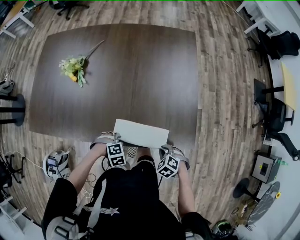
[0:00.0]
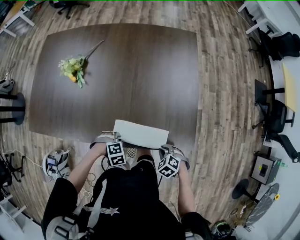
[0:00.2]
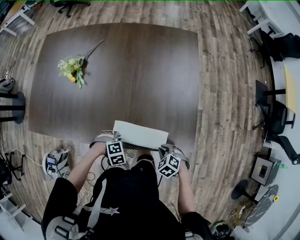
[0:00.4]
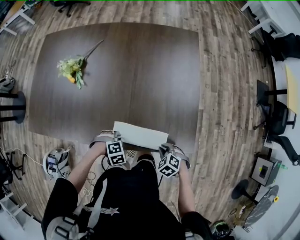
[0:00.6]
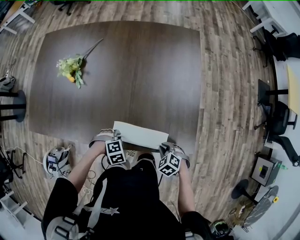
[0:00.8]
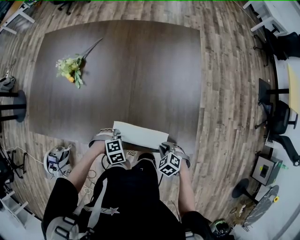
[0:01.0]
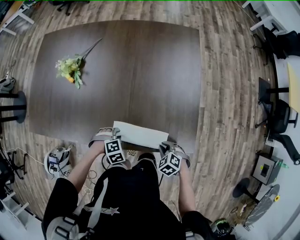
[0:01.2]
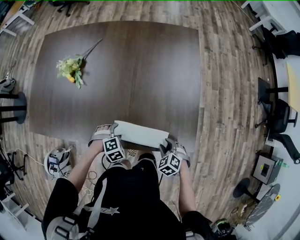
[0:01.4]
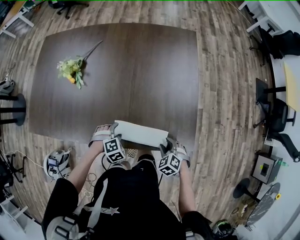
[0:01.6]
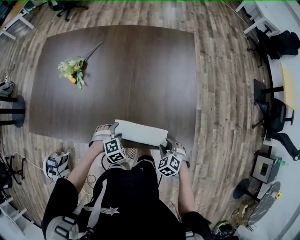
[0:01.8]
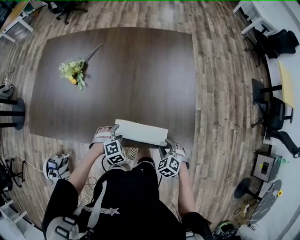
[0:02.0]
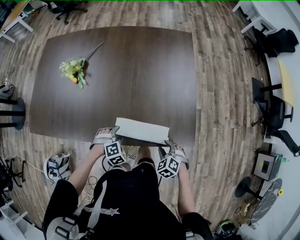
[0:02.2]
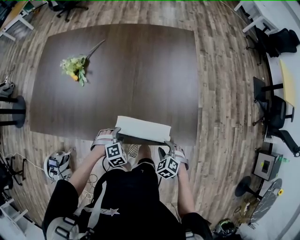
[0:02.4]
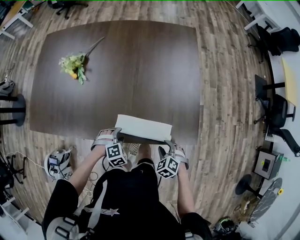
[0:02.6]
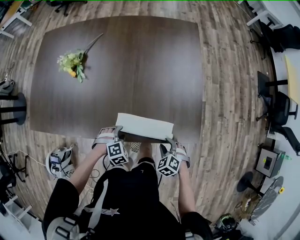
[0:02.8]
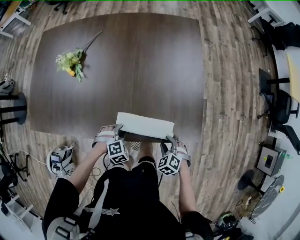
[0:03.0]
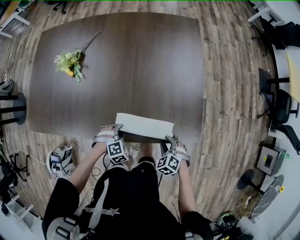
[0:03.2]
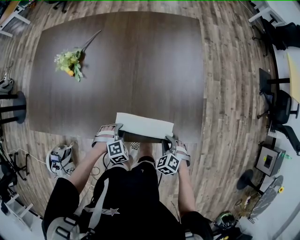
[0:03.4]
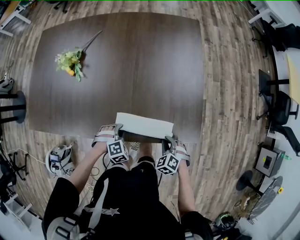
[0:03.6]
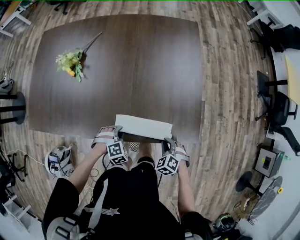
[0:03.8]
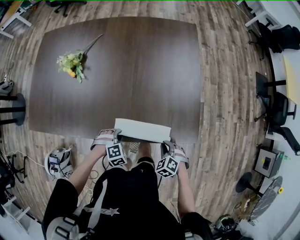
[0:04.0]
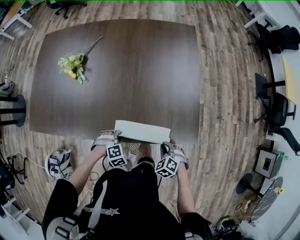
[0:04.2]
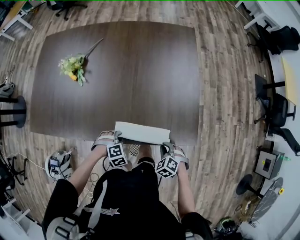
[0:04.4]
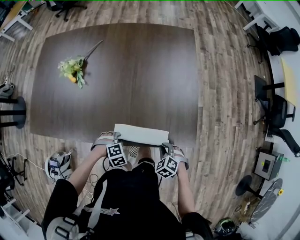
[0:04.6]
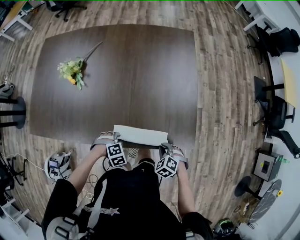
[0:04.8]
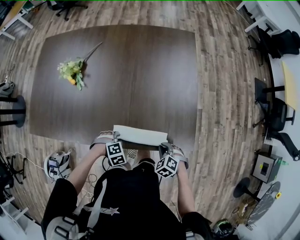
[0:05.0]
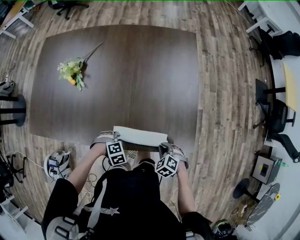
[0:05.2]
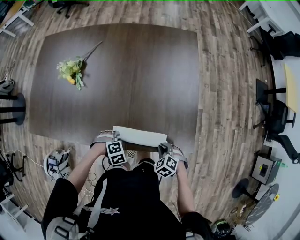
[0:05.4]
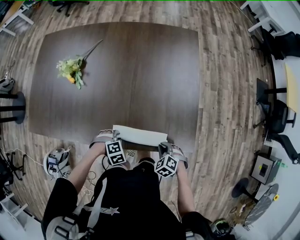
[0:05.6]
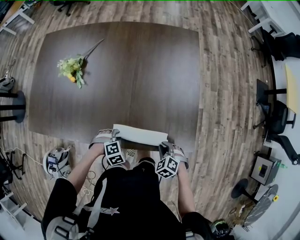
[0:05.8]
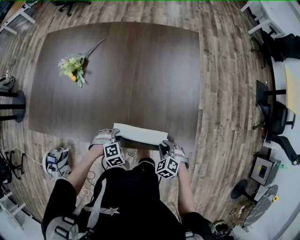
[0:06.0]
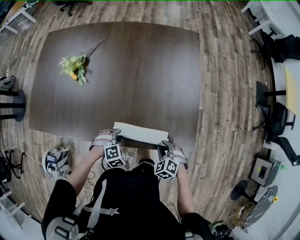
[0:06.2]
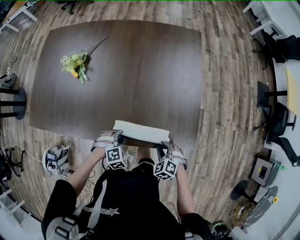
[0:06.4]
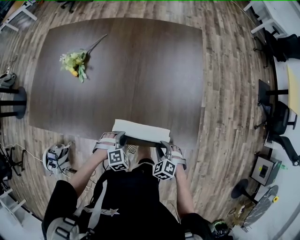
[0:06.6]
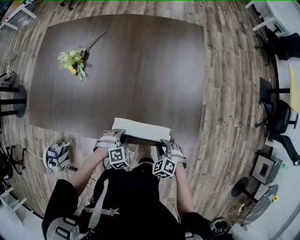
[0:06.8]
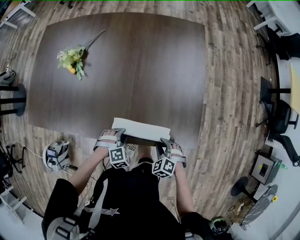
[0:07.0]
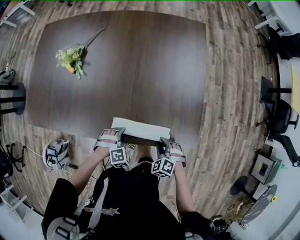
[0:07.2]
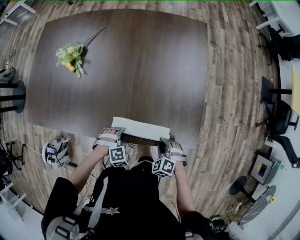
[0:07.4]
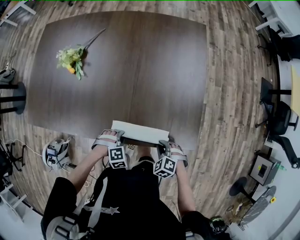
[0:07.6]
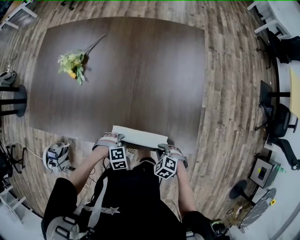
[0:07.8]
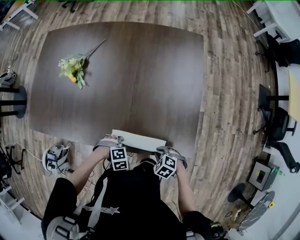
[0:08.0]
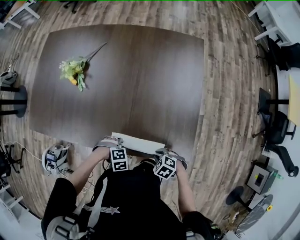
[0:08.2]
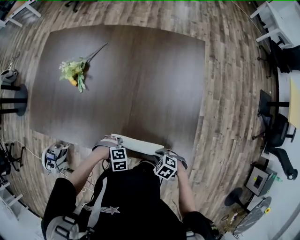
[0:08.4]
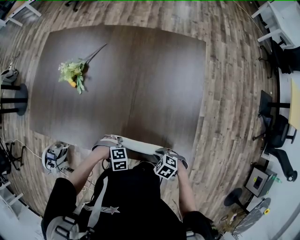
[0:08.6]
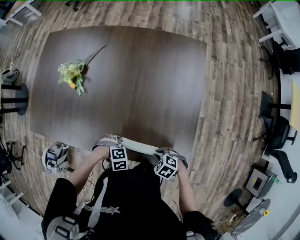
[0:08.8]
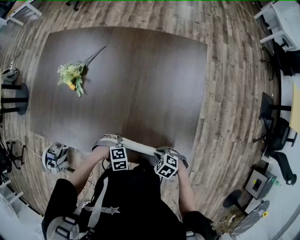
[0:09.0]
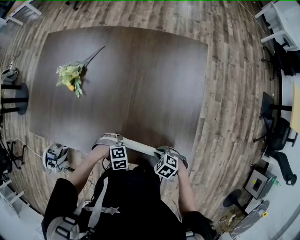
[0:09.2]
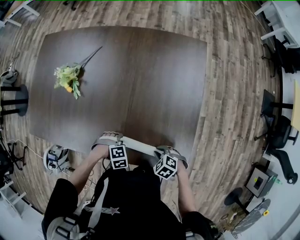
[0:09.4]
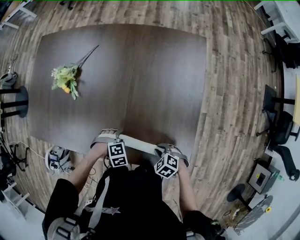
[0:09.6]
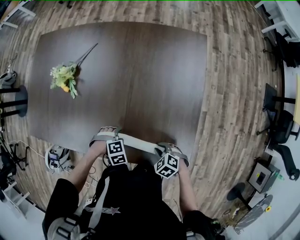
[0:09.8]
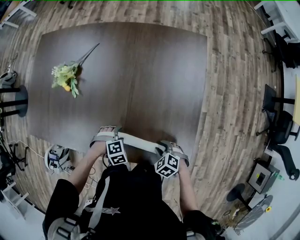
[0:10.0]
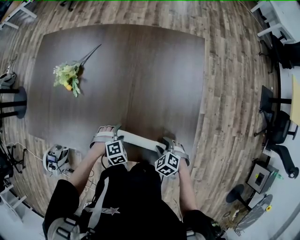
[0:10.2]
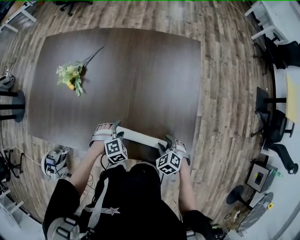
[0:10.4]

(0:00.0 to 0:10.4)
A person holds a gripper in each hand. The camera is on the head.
0:00.0 - 0:01.4: The right gripper ends up approximately 5 cm from where it was, and opens up.
0:03.0 - 0:04.4: The right gripper closes up.
0:07.4 - 0:09.0: The right gripper shifts by about 5 cm, and changes its angle by roughly 30 degrees.
0:09.0 - 0:10.4: The right gripper shifts by about 5 cm, turns by about 30 degrees, and opens up.

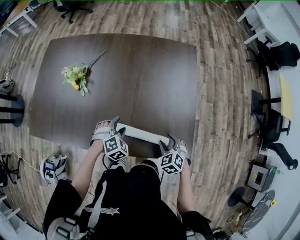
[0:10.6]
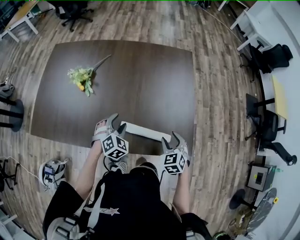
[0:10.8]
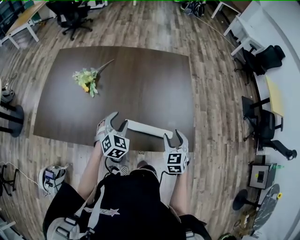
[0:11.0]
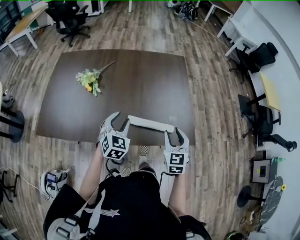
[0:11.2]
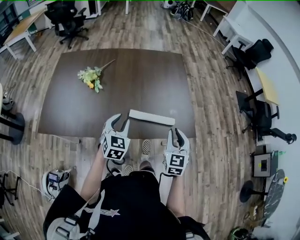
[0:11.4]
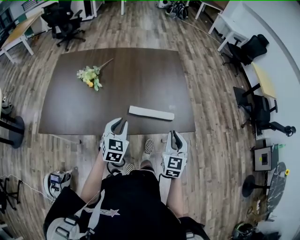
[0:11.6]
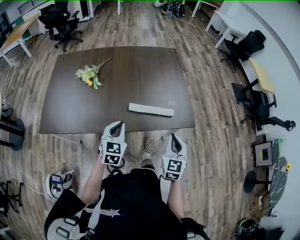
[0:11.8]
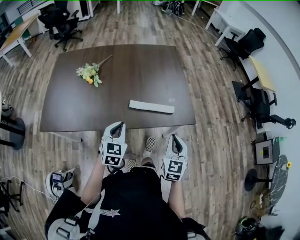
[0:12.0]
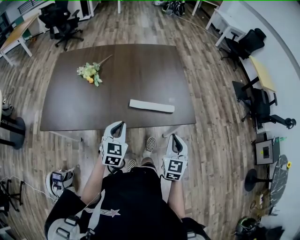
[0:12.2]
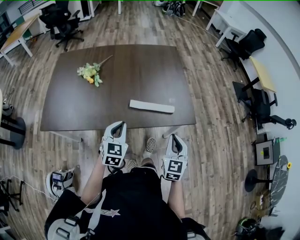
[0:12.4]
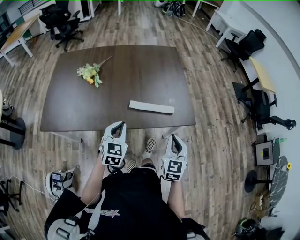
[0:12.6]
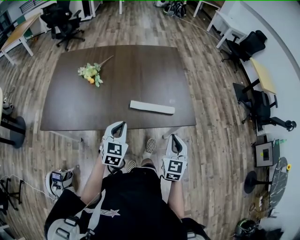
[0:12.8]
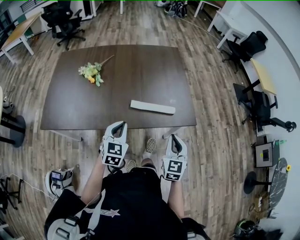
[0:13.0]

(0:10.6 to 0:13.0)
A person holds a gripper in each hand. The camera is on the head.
0:10.6 - 0:11.8: The right gripper moves approximately 30 cm, points its fingers roughly 40 degrees further upward, and closes up.

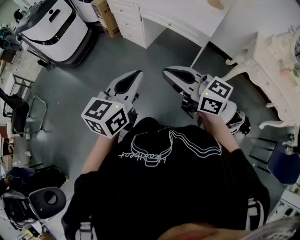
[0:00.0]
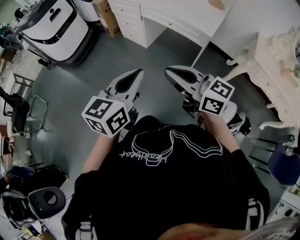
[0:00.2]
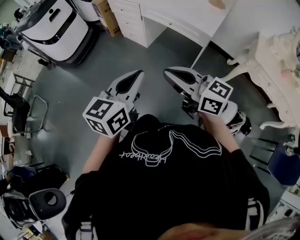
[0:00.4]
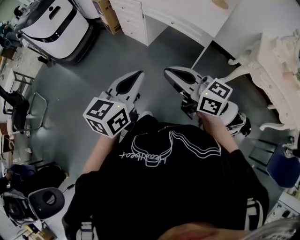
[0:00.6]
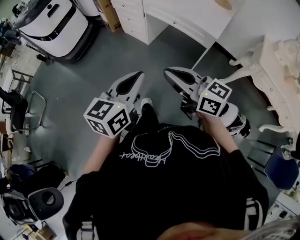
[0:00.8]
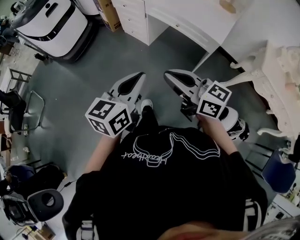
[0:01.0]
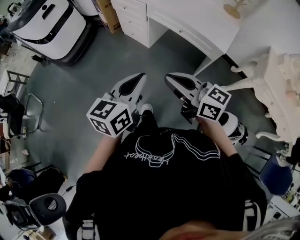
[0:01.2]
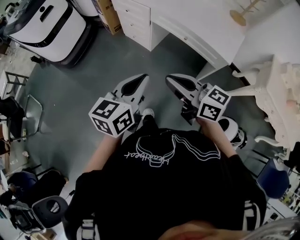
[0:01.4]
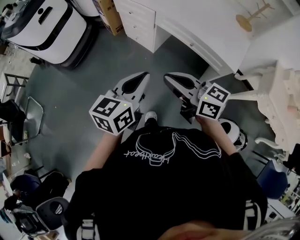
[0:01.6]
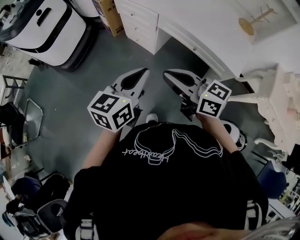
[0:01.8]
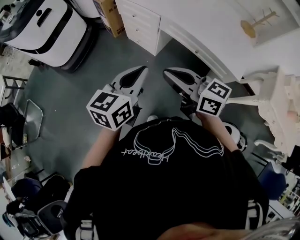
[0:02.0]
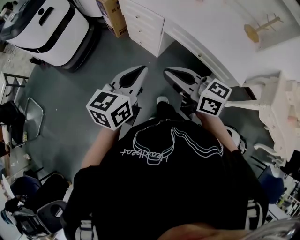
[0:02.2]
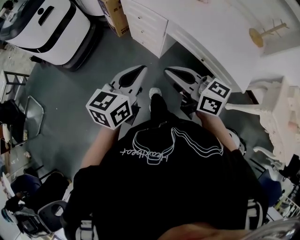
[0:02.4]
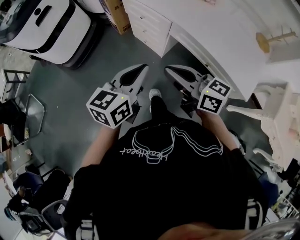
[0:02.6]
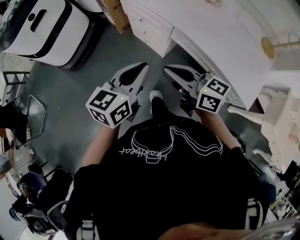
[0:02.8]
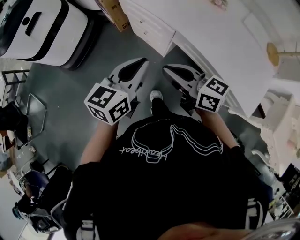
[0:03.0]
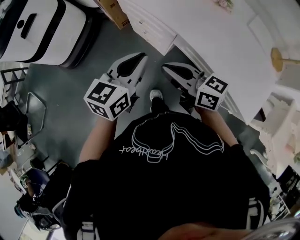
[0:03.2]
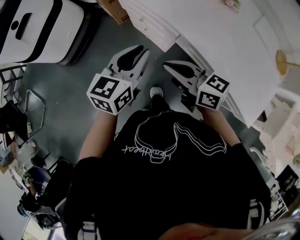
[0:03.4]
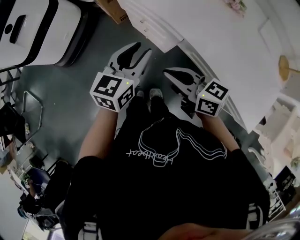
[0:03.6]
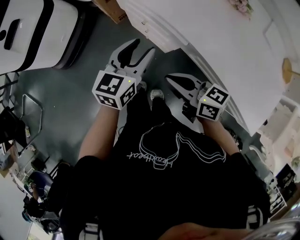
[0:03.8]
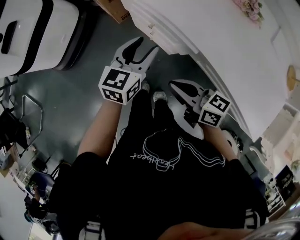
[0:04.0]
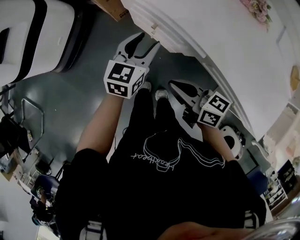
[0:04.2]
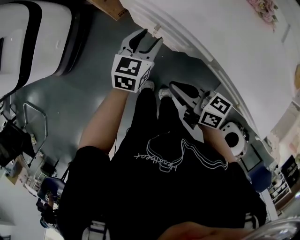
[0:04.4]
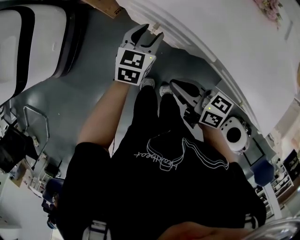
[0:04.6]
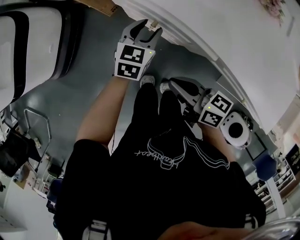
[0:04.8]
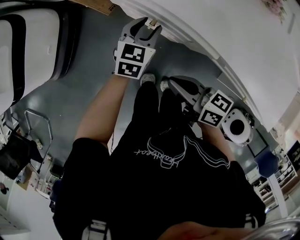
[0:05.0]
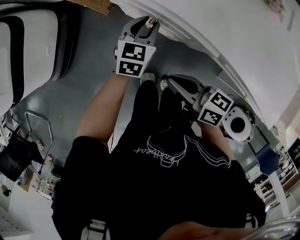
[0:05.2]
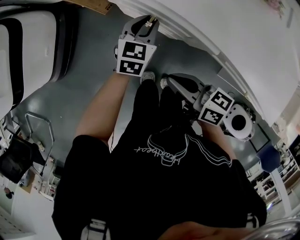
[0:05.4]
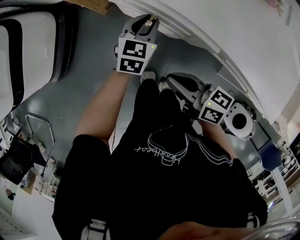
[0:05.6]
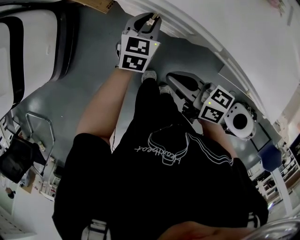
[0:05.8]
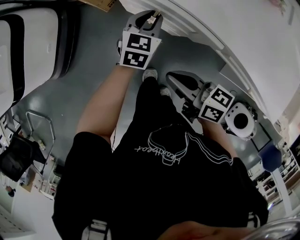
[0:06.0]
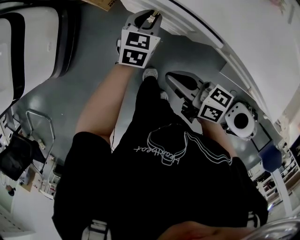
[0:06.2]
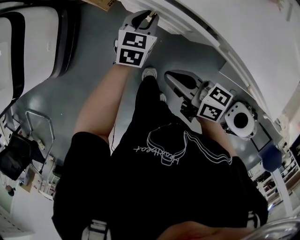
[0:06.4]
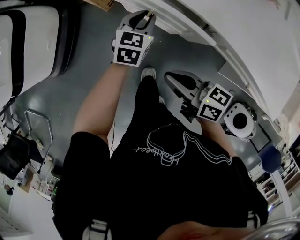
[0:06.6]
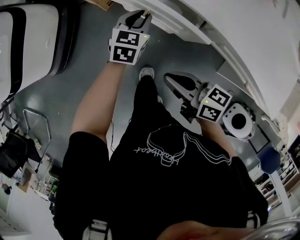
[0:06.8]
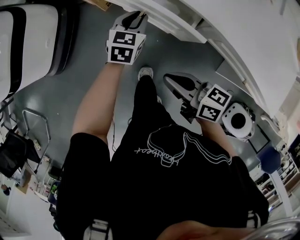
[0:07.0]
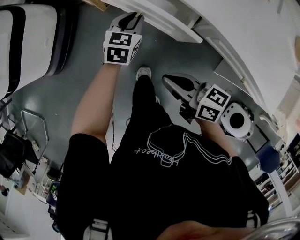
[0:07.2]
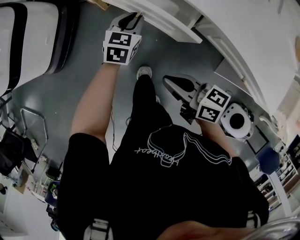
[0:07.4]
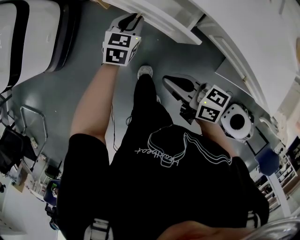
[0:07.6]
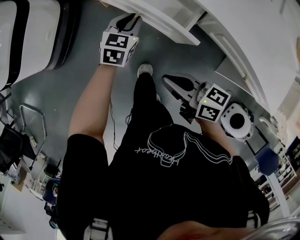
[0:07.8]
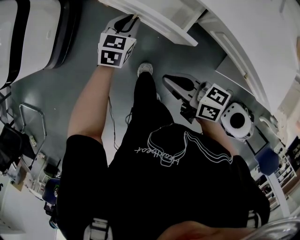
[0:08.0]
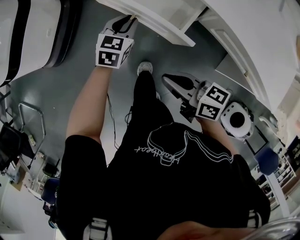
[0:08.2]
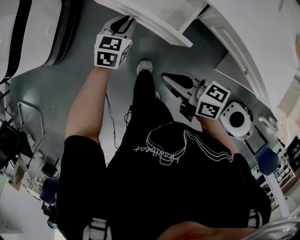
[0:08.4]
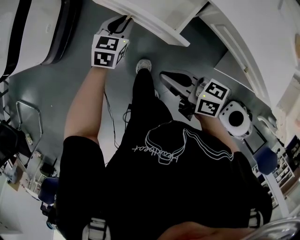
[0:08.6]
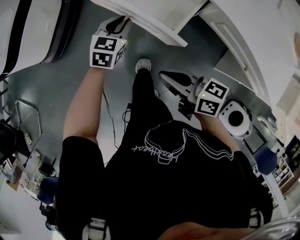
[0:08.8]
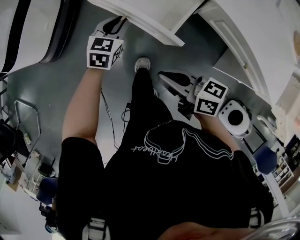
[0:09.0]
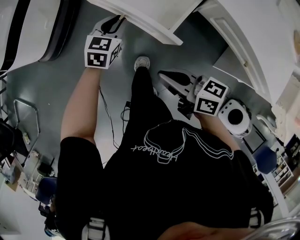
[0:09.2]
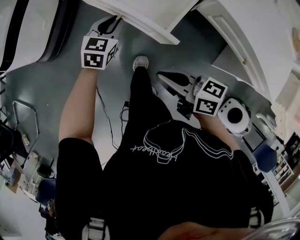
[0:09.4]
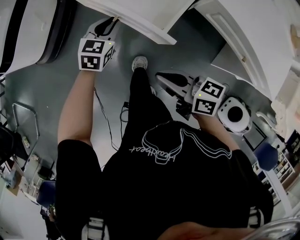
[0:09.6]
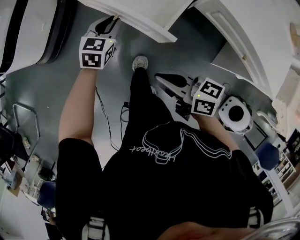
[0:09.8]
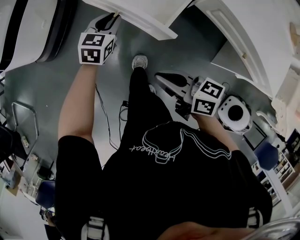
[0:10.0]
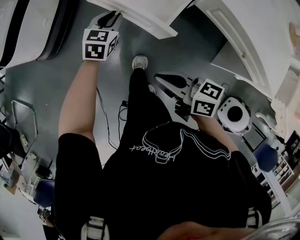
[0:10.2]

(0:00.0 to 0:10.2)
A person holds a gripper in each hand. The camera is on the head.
0:00.0 - 0:01.4: Both grippers move forward, roughly 25 cm.
0:01.4 - 0:03.0: Both grippers travel together forward, about 35 cm.
0:03.0 - 0:04.4: The left gripper goes about 35 cm forward and downward, and opens up. Meanwhile the right gripper heads downward and forward, covering about 20 cm.
0:04.4 - 0:05.8: The left gripper is displaced downward by some 5 cm, and closes its fingers.
0:05.8 - 0:07.2: The right gripper is displaced backward by approximately 5 cm. Meanwhile the left gripper shifts by approximately 5 cm.
0:07.2 - 0:08.8: The right gripper heads backward, covering approximately 5 cm; the left gripper heads to the left and backward, covering approximately 10 cm.
0:08.8 - 0:10.2: The right gripper is displaced backward by about 5 cm.

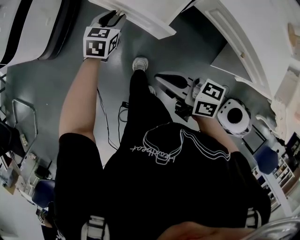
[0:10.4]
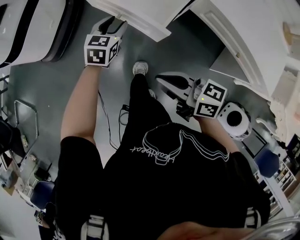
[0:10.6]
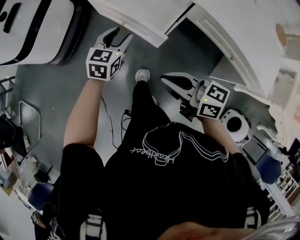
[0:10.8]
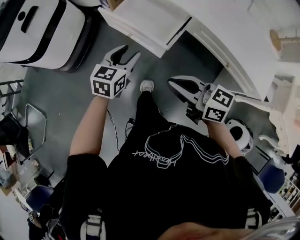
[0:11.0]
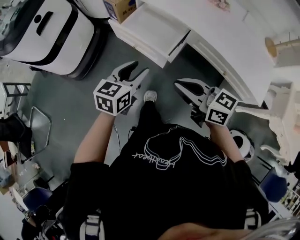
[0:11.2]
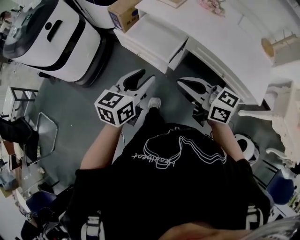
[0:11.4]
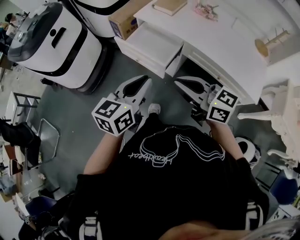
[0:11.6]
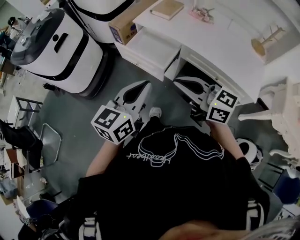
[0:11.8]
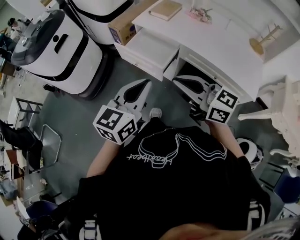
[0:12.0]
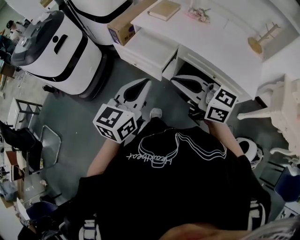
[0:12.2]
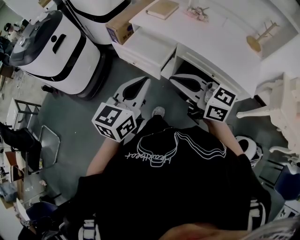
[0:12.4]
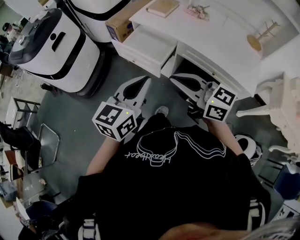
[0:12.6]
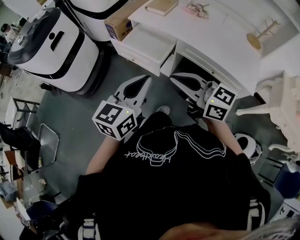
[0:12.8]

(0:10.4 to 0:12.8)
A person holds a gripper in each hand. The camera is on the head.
0:10.4 - 0:11.6: The left gripper goes about 40 cm upward and backward, and changes its angle by approximately 30 degrees. Meanwhile the right gripper moves upward, roughly 25 cm, and swivels approximately 30 degrees.
0:11.6 - 0:12.8: The left gripper shifts by about 5 cm.
